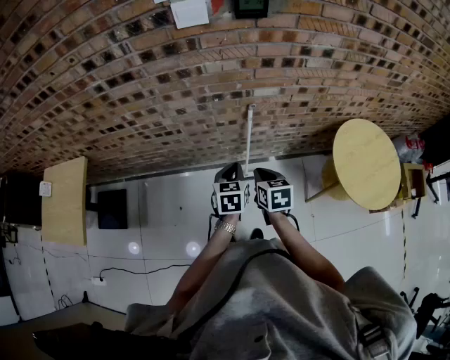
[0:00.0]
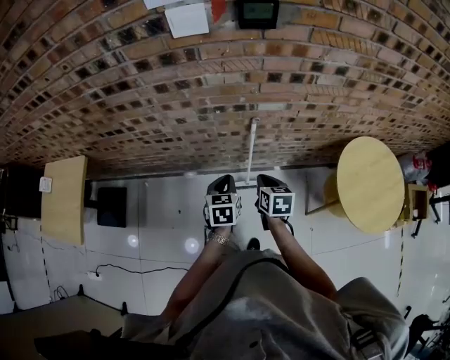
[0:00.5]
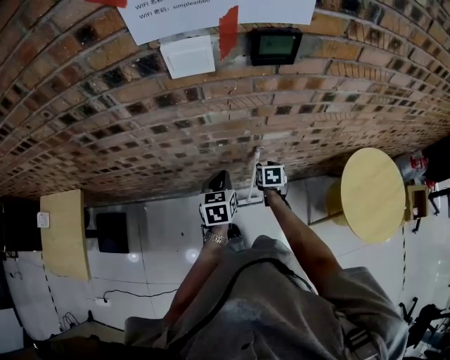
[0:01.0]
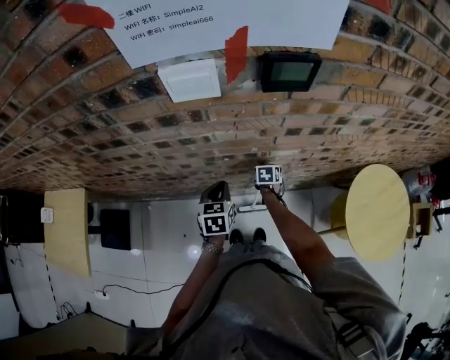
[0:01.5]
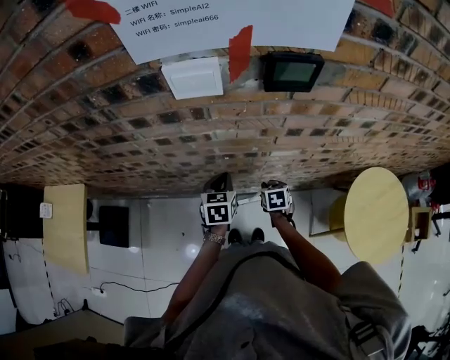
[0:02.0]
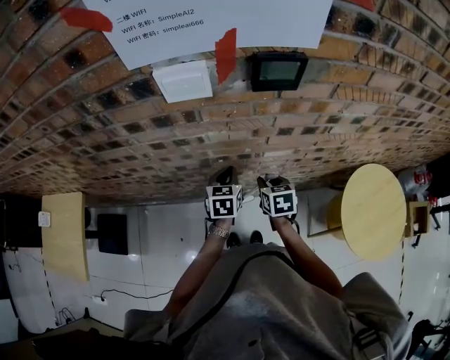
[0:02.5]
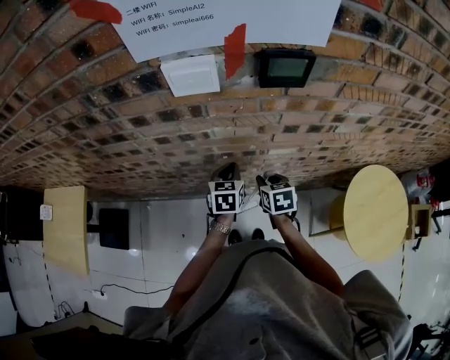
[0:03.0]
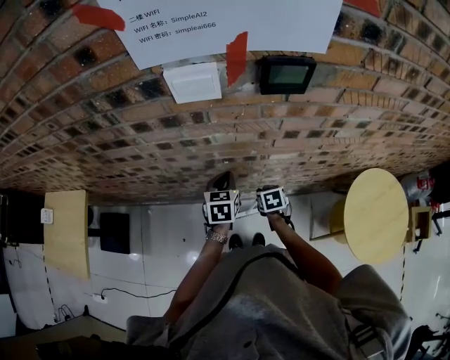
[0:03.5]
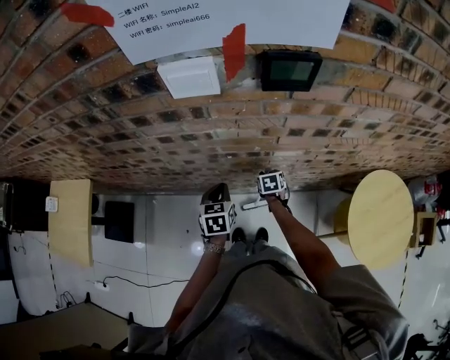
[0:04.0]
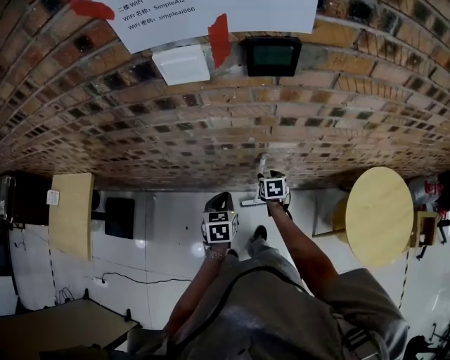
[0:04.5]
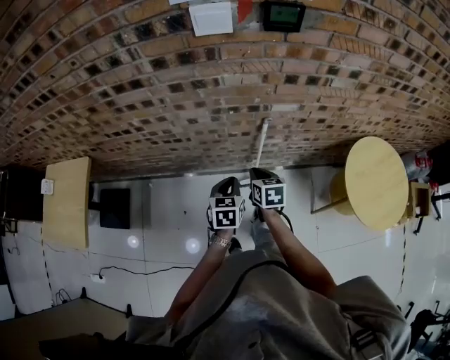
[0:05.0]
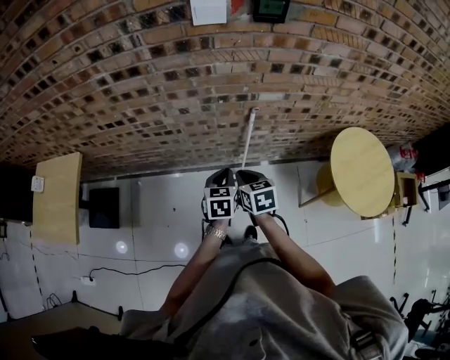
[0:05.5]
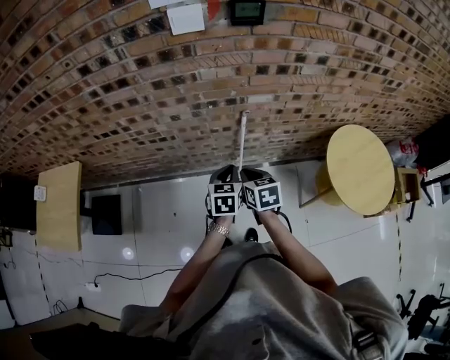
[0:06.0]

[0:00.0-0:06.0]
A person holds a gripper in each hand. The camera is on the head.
0:00.0 to 0:02.0: The left gripper goes approximately 25 cm forward. The right gripper goes some 30 cm forward and downward, and opens.
0:02.0 to 0:04.0: The right gripper moves forward, about 5 cm, and reaches about 15 cm upward, then returns.
0:04.0 to 0:06.0: The right gripper is displaced backward and upward by roughly 35 cm, and closes its fingers. Meanwhile the left gripper moves backward, roughly 20 cm.

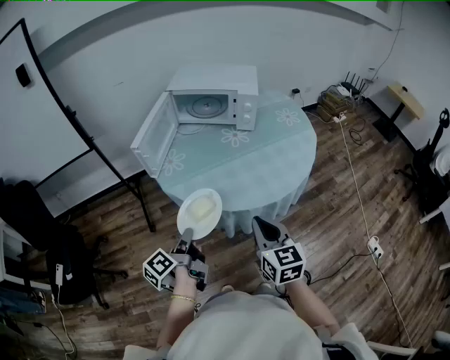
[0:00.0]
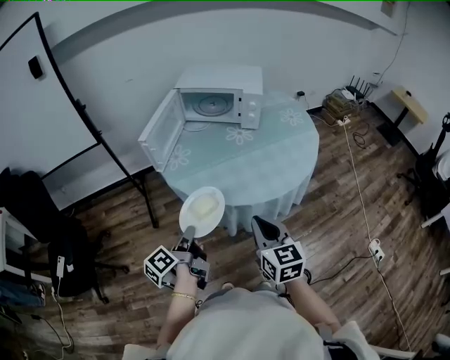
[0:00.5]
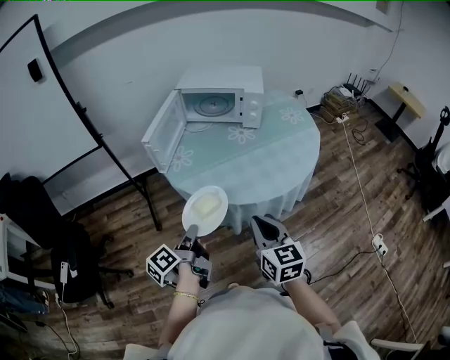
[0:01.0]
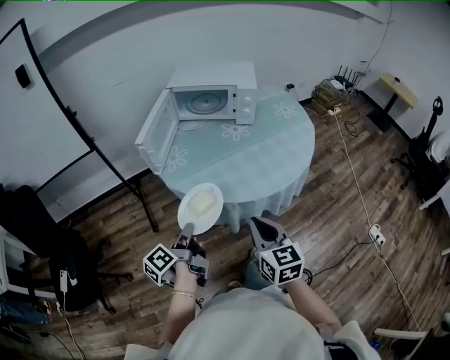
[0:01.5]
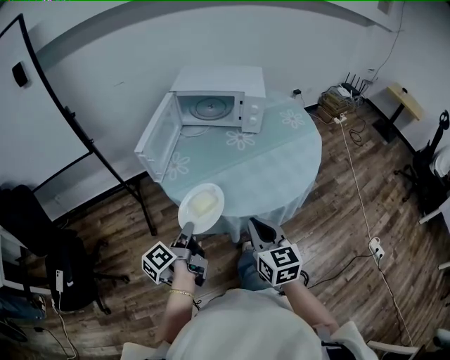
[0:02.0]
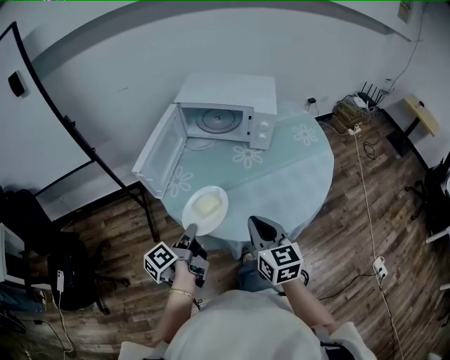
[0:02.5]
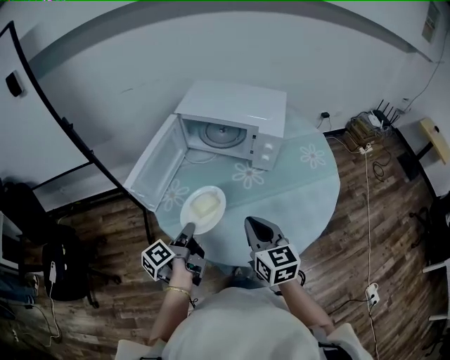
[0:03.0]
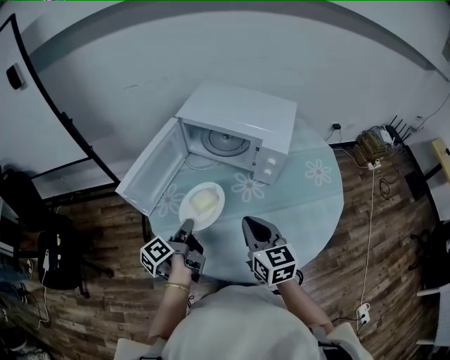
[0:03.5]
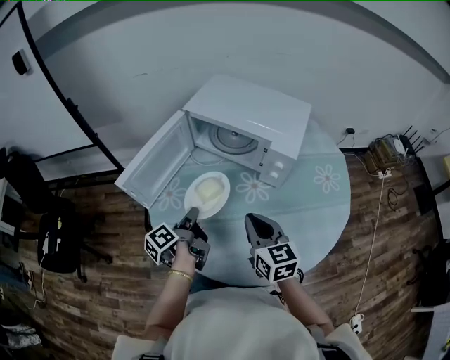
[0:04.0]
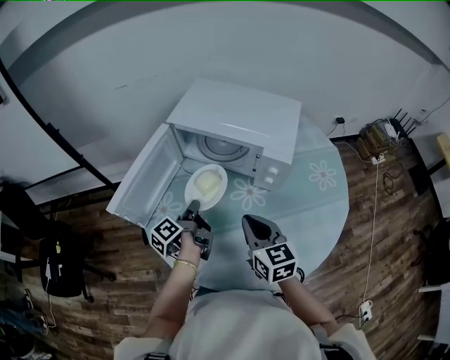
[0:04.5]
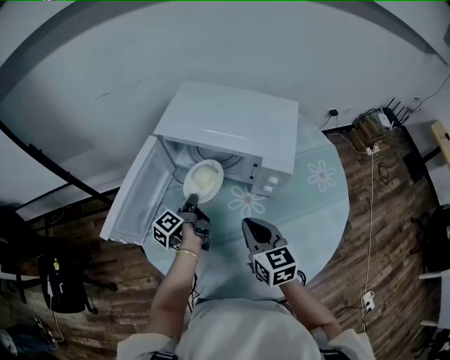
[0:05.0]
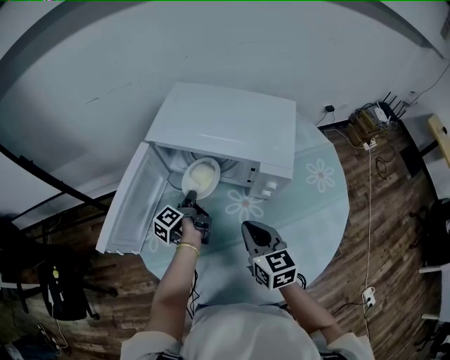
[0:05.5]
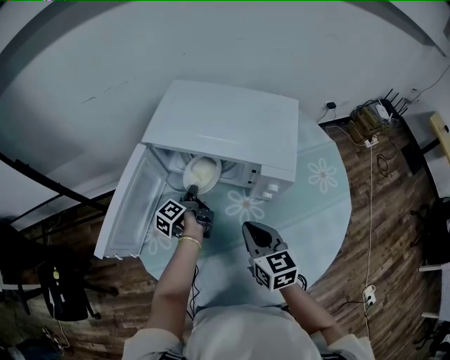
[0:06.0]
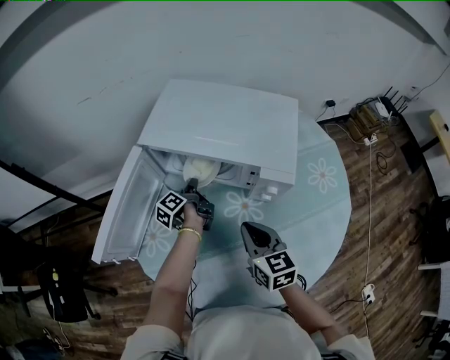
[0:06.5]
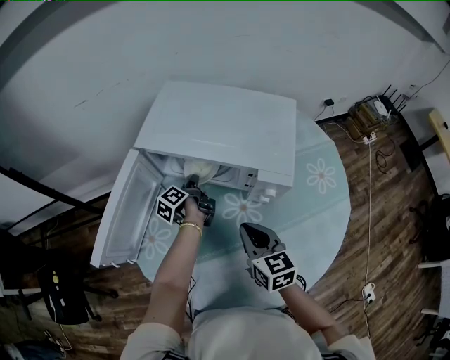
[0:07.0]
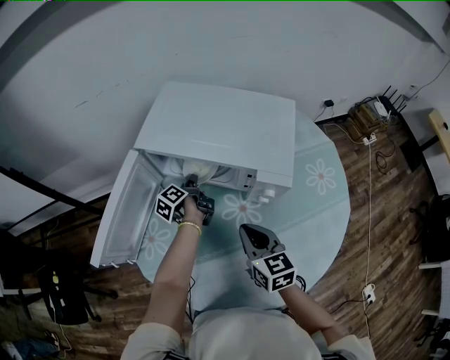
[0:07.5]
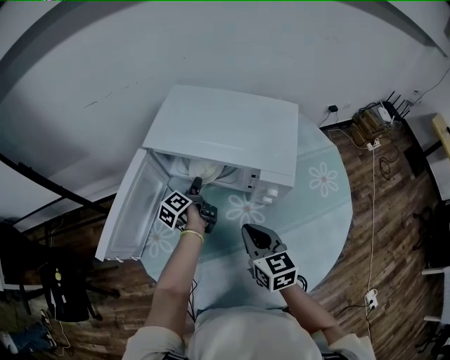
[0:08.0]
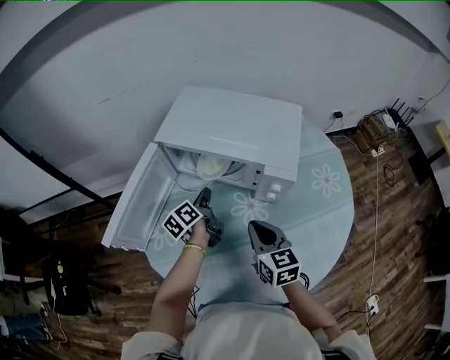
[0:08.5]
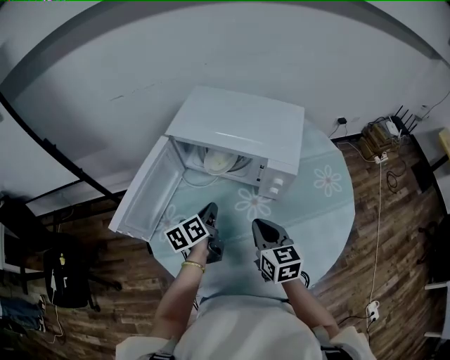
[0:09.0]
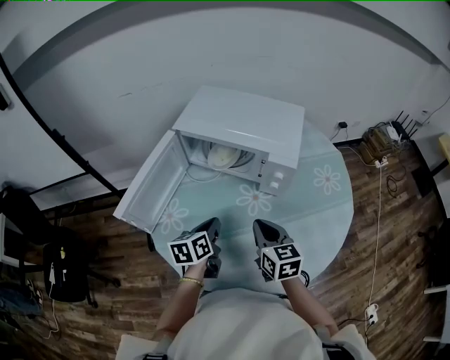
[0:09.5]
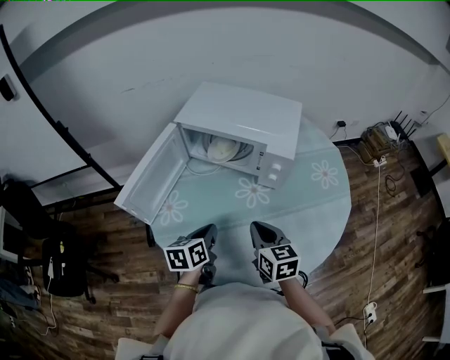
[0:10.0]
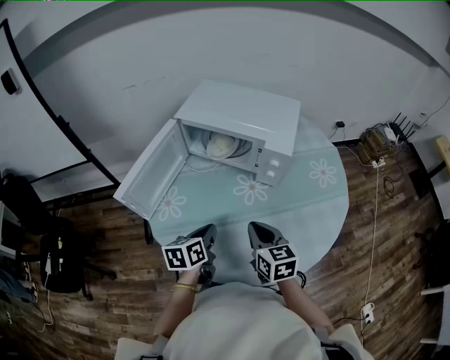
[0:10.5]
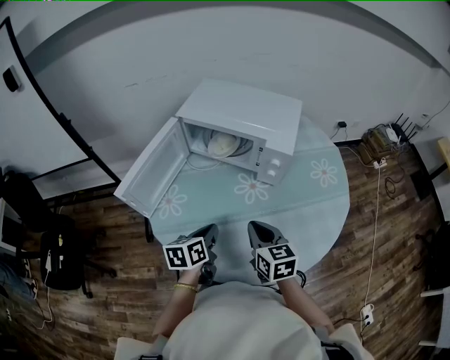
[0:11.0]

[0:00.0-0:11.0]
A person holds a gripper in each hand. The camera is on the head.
0:00.0 to 0:02.0: The right gripper changes place by roughly 5 cm.
0:02.0 to 0:03.5: The right gripper changes place by some 30 cm.
0:03.5 to 0:05.5: The right gripper shifts by some 15 cm.
0:07.5 to 0:09.0: The right gripper ends up about 5 cm from where it was.
0:09.0 to 0:11.0: The right gripper moves some 10 cm.

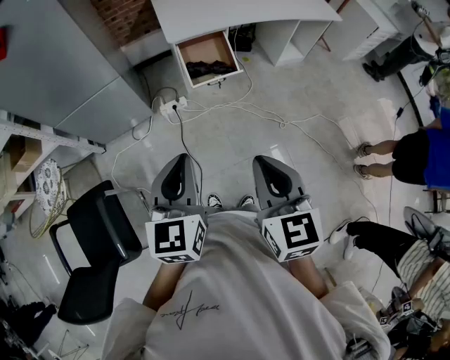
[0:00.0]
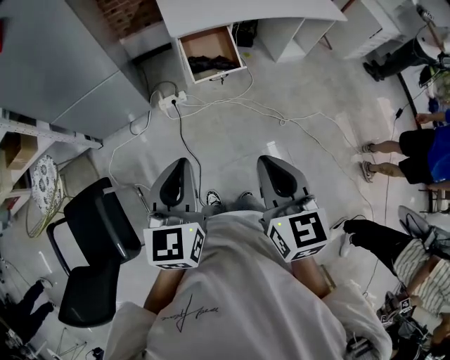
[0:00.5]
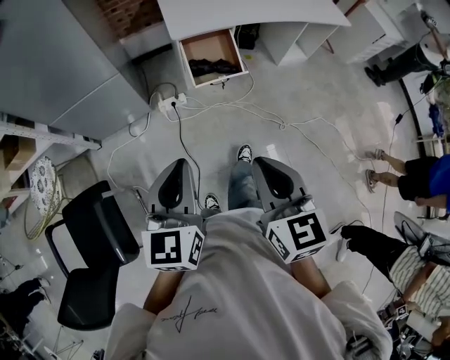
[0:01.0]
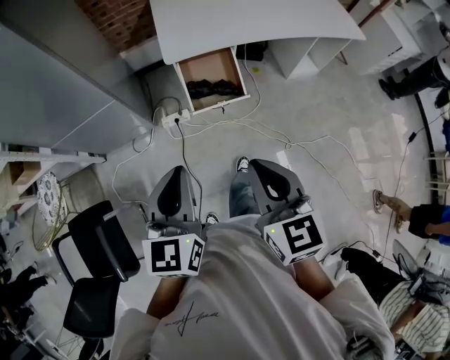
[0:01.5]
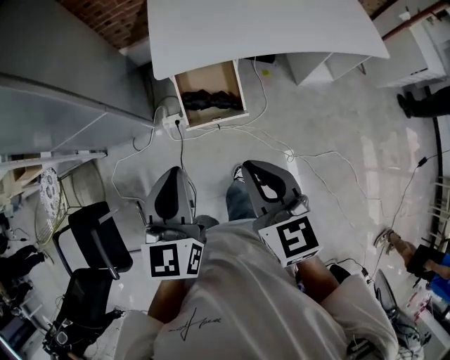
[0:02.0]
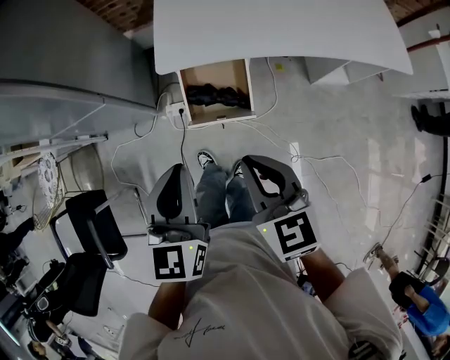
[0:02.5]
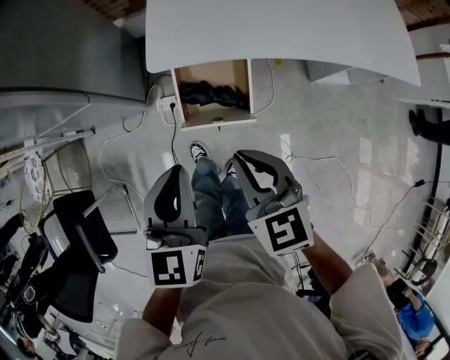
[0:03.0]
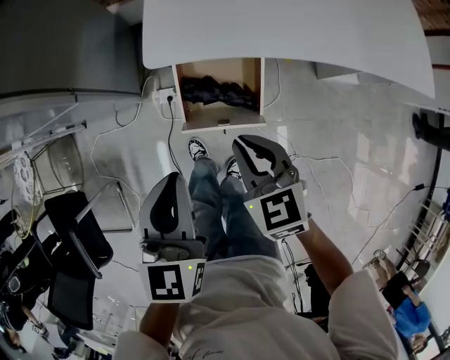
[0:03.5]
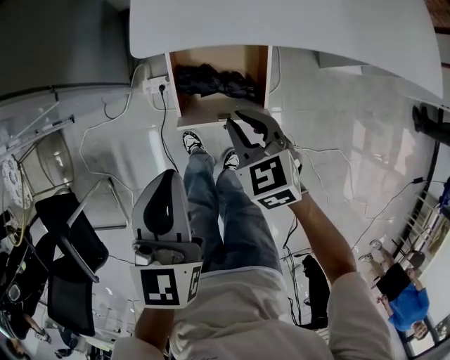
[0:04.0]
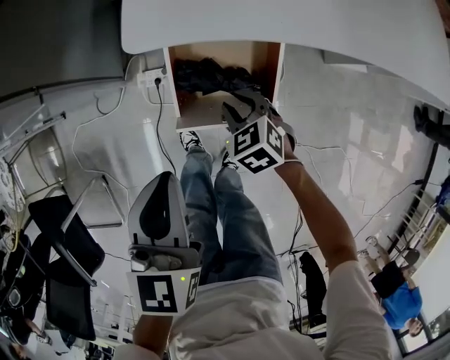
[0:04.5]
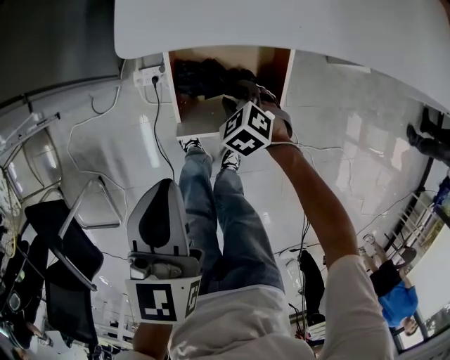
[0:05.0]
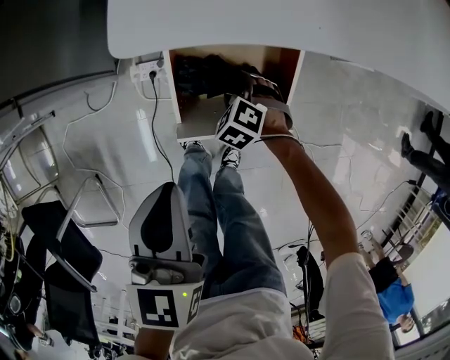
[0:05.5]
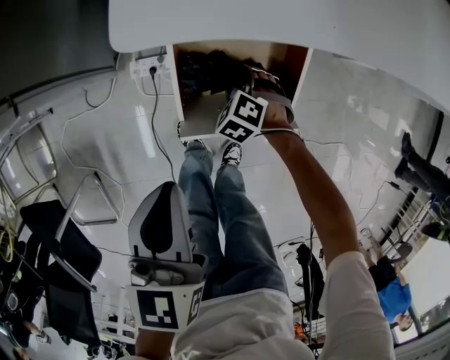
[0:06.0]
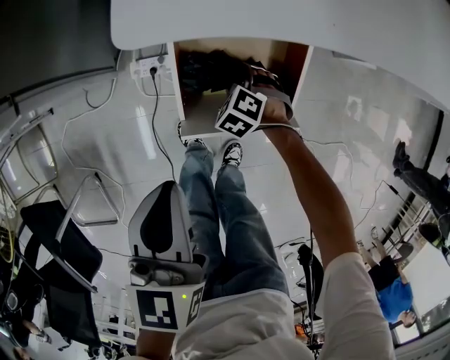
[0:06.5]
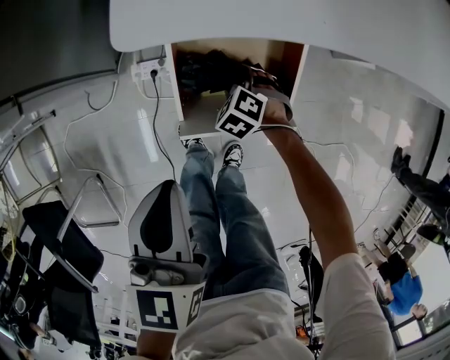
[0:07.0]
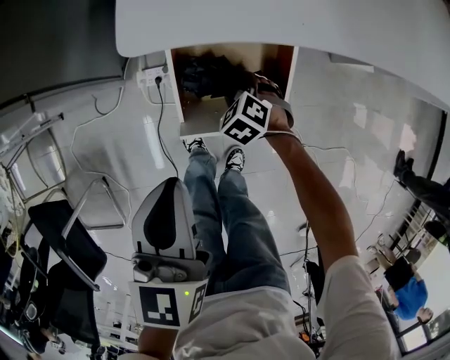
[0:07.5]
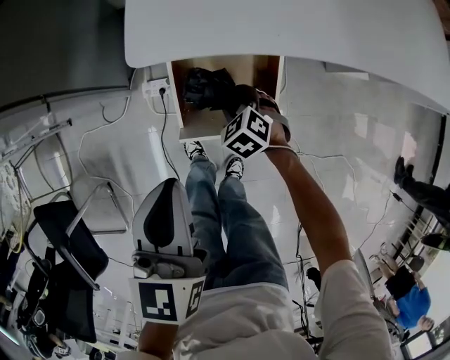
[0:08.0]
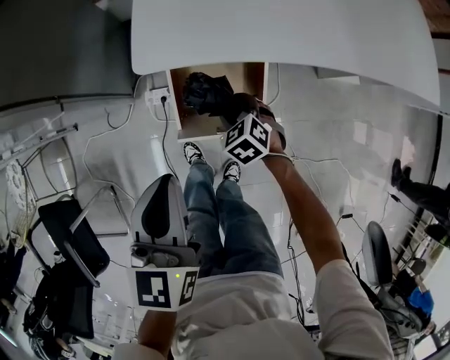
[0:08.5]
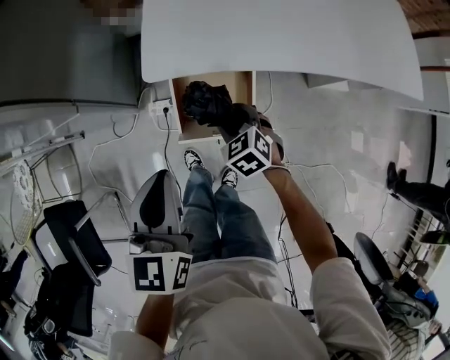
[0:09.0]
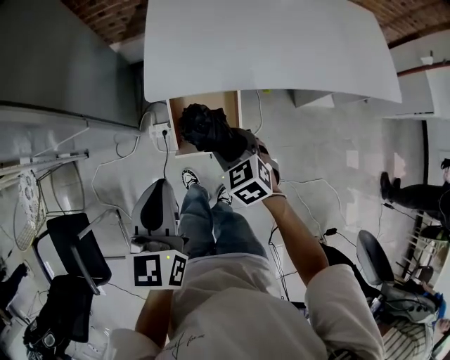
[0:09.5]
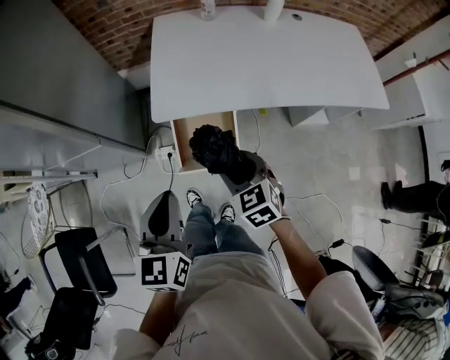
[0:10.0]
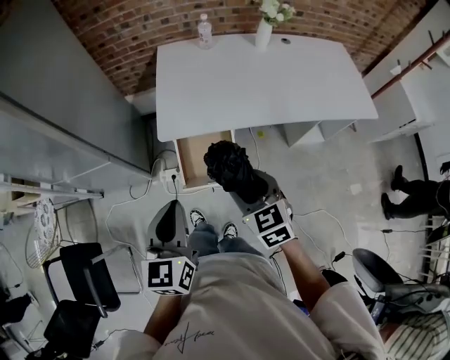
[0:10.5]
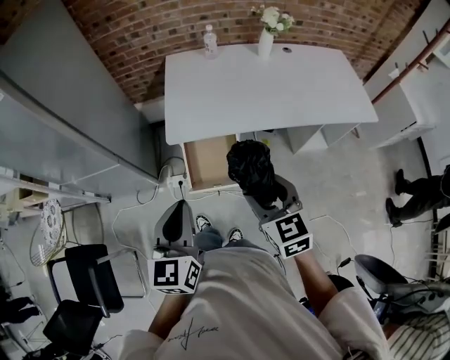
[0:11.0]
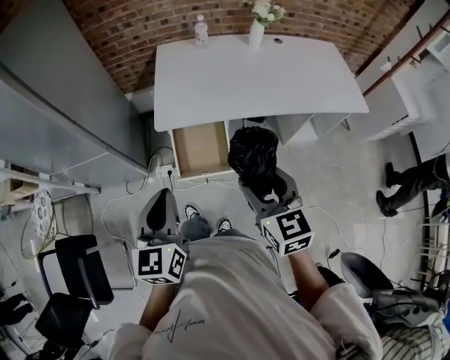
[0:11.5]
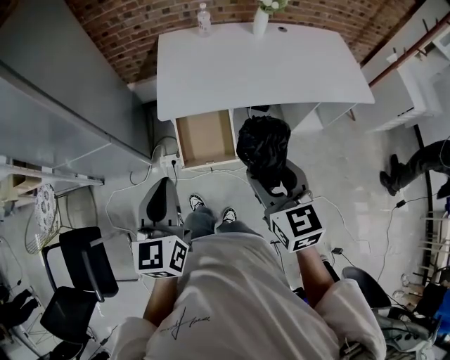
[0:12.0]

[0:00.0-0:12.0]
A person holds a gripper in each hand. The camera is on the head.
0:00.0 to 0:02.0: The left gripper is displaced forward and to the right by roughly 30 cm, while the right gripper heads forward, covering approximately 35 cm.
0:02.0 to 0:04.0: The right gripper heads downward and forward, covering some 40 cm, and changes its angle by about 30 degrees; the left gripper heads downward and forward, covering about 25 cm.
0:04.0 to 0:06.0: The right gripper is displaced downward by roughly 30 cm, swivels some 40 degrees, and opens up. The left gripper heads downward, covering some 10 cm.
0:06.0 to 0:08.0: Both grippers move upward, roughly 10 cm.
0:08.0 to 0:10.0: The left gripper moves upward and backward, roughly 20 cm. The right gripper moves upward, about 35 cm, and rotates about 30 degrees.
0:10.0 to 0:12.0: The right gripper moves upward and backward, approximately 20 cm, and swivels roughly 30 degrees, while the left gripper goes about 10 cm backward and upward.
